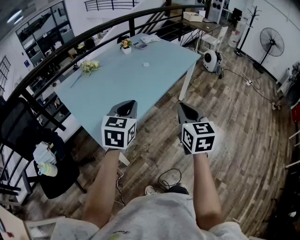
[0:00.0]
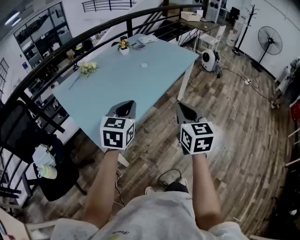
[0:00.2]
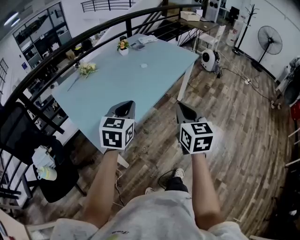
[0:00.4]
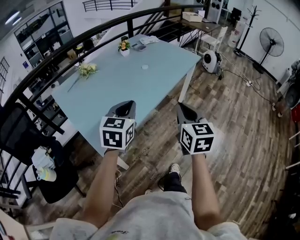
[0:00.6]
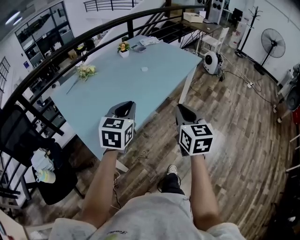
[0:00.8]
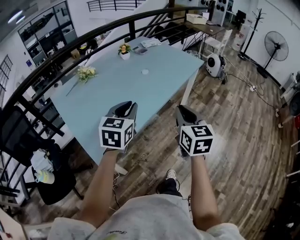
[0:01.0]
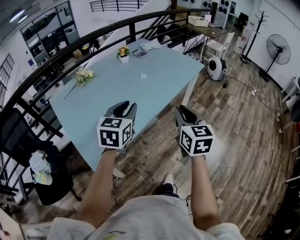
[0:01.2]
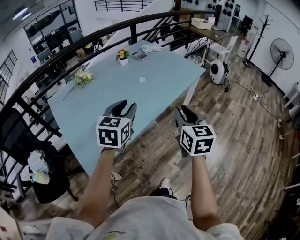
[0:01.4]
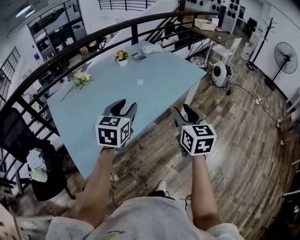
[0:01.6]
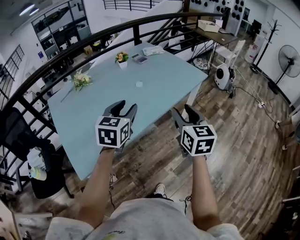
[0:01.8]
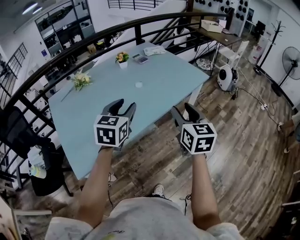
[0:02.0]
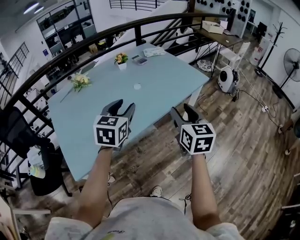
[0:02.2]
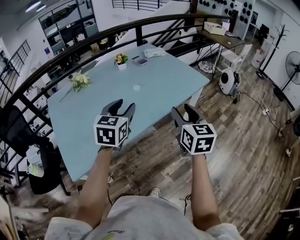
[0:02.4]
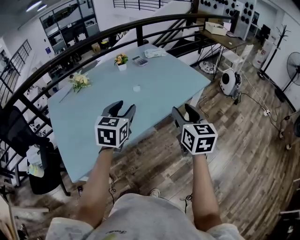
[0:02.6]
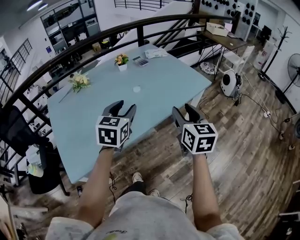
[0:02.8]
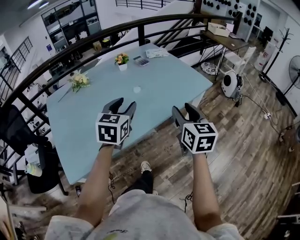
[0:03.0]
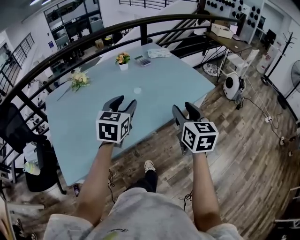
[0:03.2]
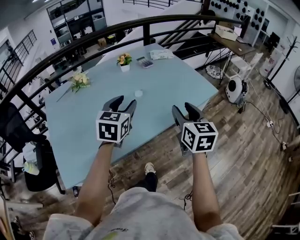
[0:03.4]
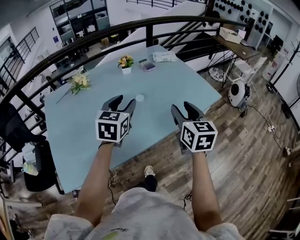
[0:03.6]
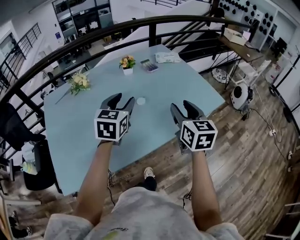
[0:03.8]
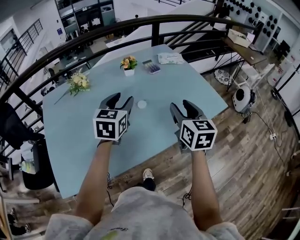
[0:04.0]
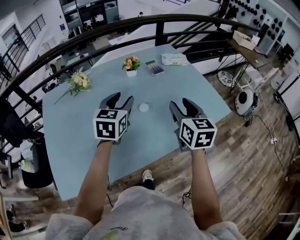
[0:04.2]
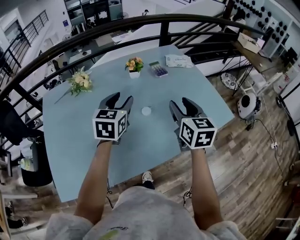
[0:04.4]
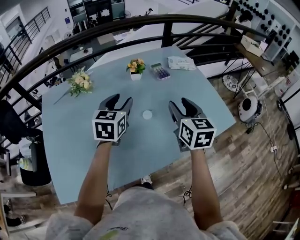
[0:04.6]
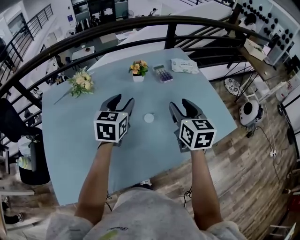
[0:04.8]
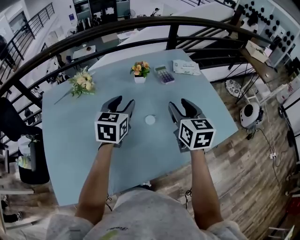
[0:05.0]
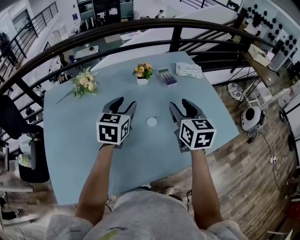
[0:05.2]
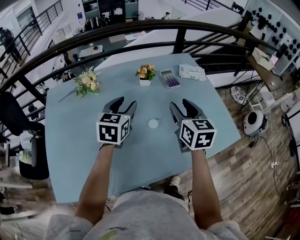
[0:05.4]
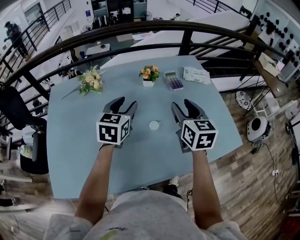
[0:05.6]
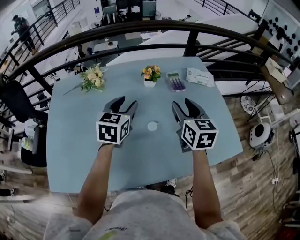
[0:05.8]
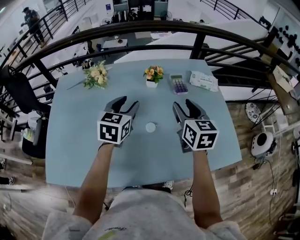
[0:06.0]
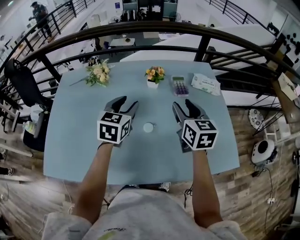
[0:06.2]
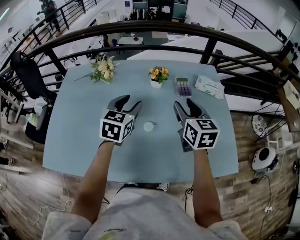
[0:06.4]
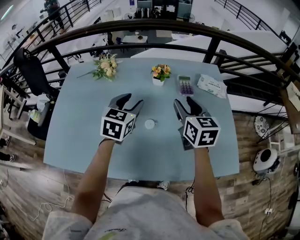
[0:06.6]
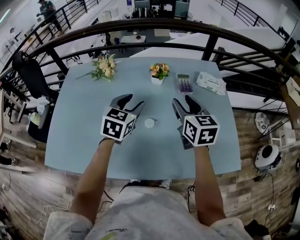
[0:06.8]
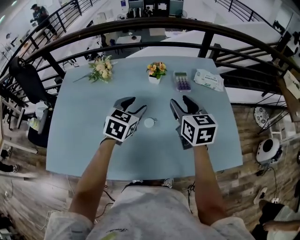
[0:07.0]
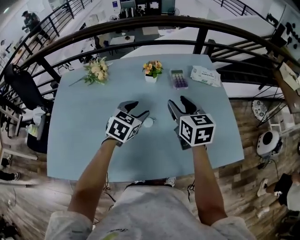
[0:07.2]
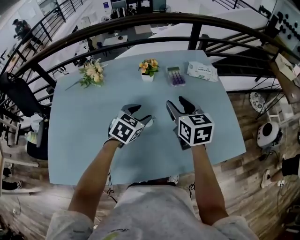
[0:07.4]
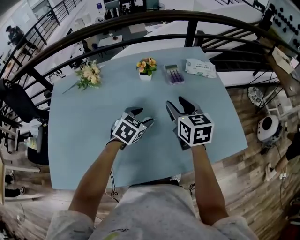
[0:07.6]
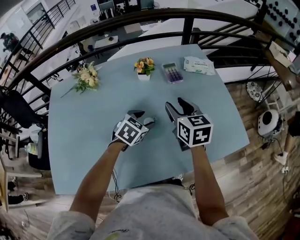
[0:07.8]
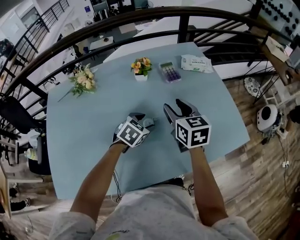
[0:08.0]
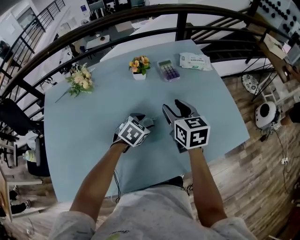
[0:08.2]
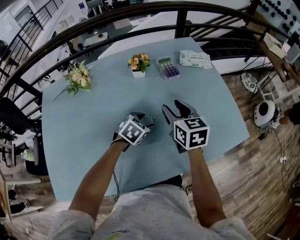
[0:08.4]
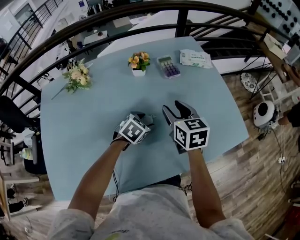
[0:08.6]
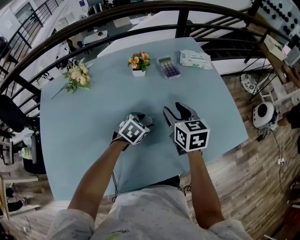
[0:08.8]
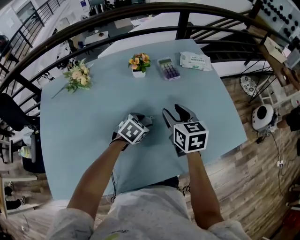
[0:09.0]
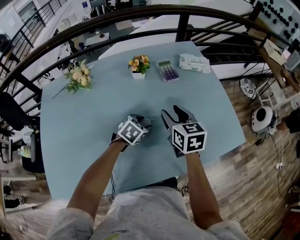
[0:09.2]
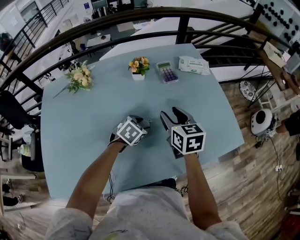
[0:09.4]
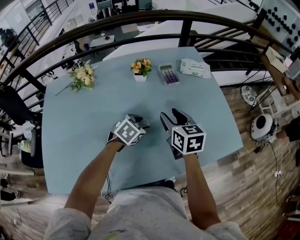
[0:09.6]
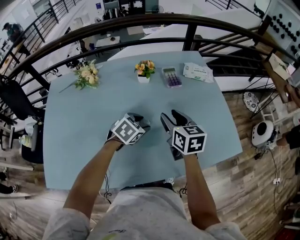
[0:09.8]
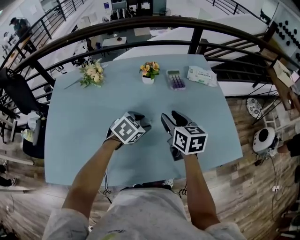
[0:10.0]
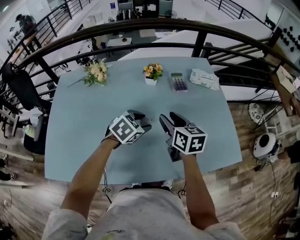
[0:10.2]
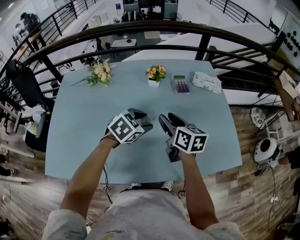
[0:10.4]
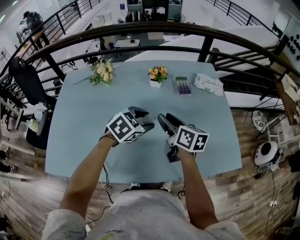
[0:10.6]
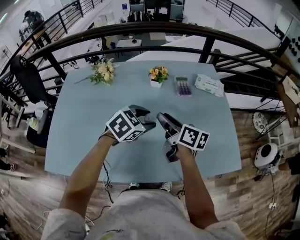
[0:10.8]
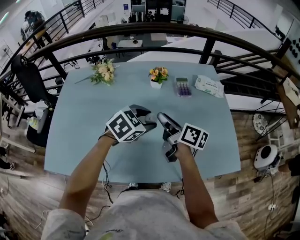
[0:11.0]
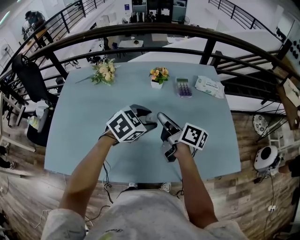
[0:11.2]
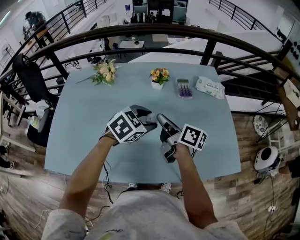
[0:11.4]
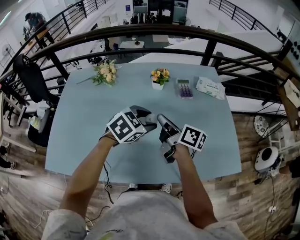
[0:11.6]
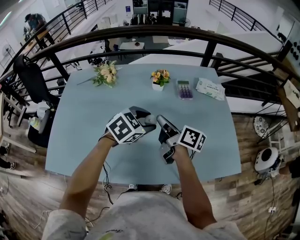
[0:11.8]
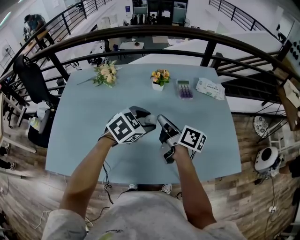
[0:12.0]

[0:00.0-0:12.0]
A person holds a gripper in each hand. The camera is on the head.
0:00.0 to 0:01.6: The right gripper moves forward and to the right, approximately 25 cm, and opens up. Meanwhile the left gripper is displaced forward by about 20 cm, and opens its fingers.
0:01.6 to 0:03.0: Both grippers move forward and to the right, some 10 cm.
0:03.0 to 0:04.4: The two grippers go some 25 cm forward.
0:04.4 to 0:06.0: The right gripper moves forward, roughly 15 cm. The left gripper goes about 5 cm forward.
0:06.0 to 0:07.6: The left gripper moves downward and to the right, approximately 15 cm, and swivels approximately 30 degrees.
0:07.6 to 0:09.0: The left gripper travels downward by about 10 cm; the right gripper travels downward by roughly 5 cm.
0:09.0 to 0:10.4: The left gripper heads upward, covering some 10 cm, while the right gripper changes its angle by roughly 20 degrees.
0:10.4 to 0:12.0: The right gripper swivels some 30 degrees, and closes up.

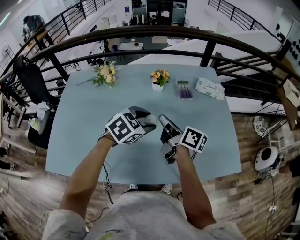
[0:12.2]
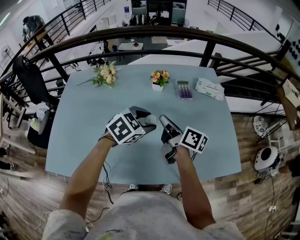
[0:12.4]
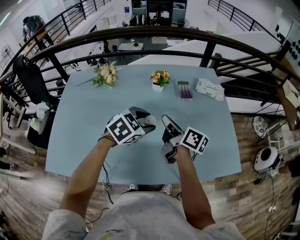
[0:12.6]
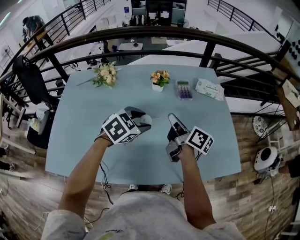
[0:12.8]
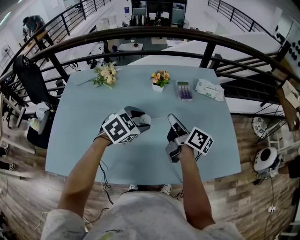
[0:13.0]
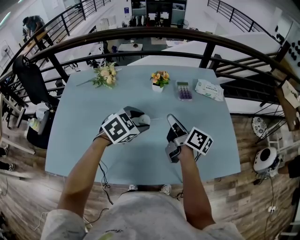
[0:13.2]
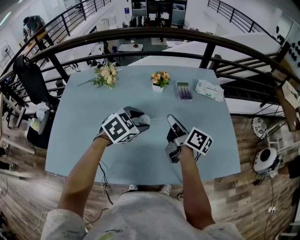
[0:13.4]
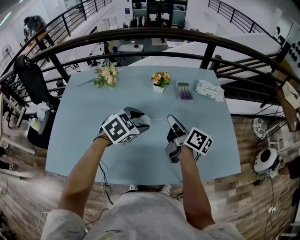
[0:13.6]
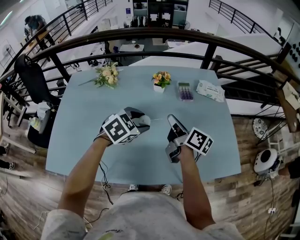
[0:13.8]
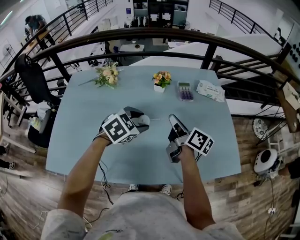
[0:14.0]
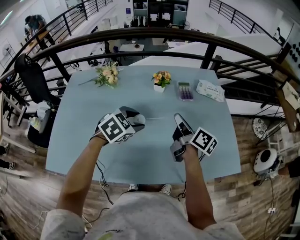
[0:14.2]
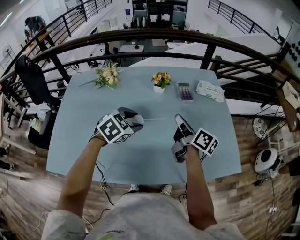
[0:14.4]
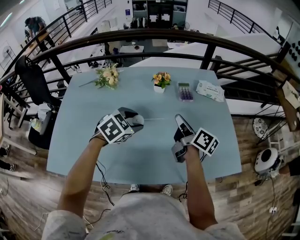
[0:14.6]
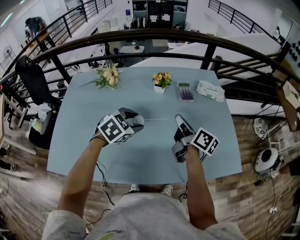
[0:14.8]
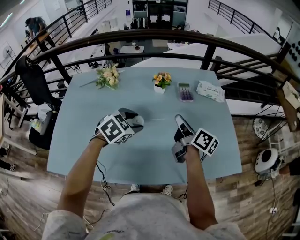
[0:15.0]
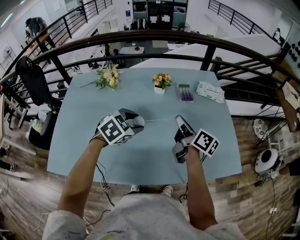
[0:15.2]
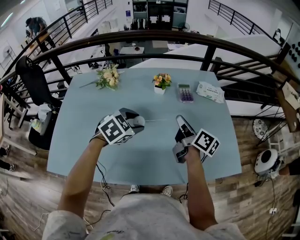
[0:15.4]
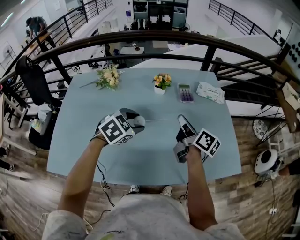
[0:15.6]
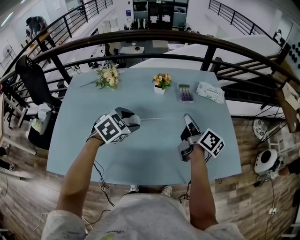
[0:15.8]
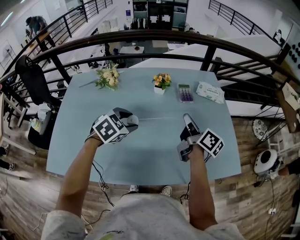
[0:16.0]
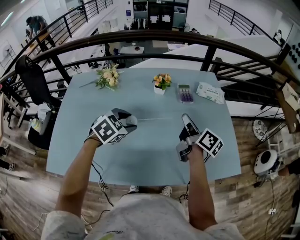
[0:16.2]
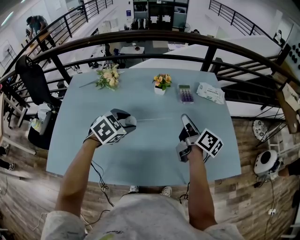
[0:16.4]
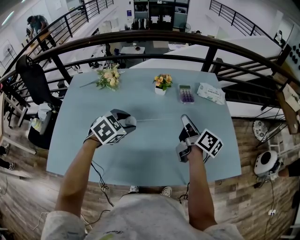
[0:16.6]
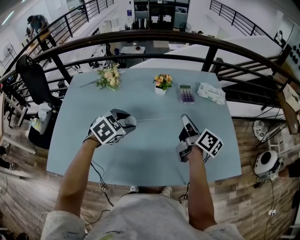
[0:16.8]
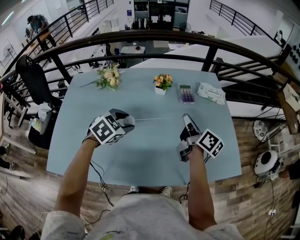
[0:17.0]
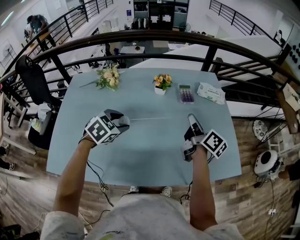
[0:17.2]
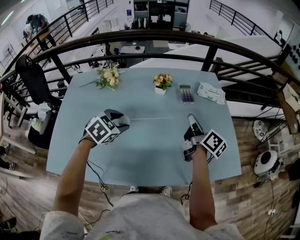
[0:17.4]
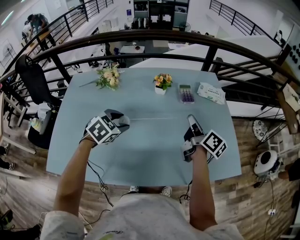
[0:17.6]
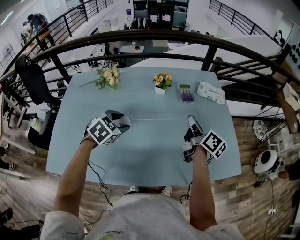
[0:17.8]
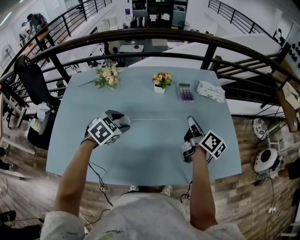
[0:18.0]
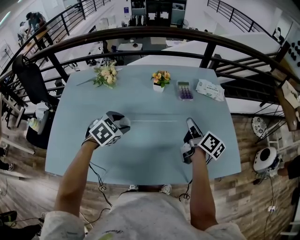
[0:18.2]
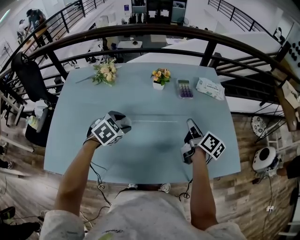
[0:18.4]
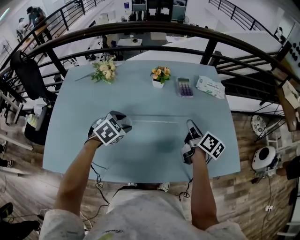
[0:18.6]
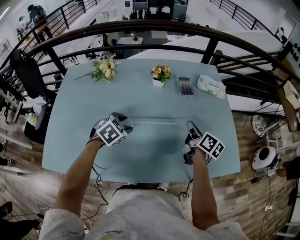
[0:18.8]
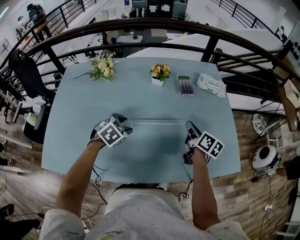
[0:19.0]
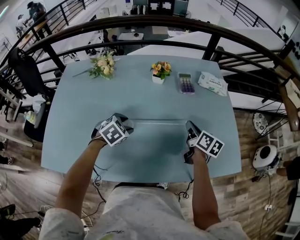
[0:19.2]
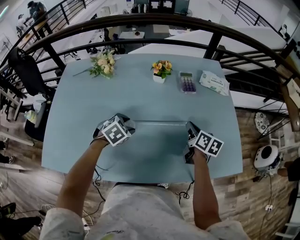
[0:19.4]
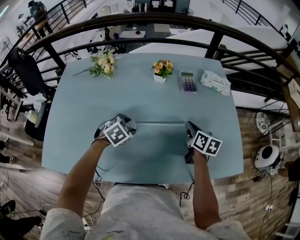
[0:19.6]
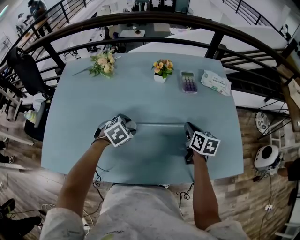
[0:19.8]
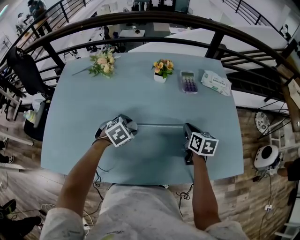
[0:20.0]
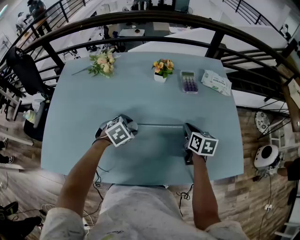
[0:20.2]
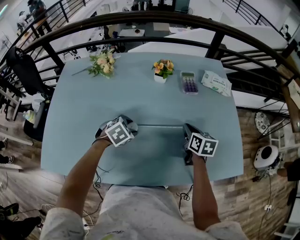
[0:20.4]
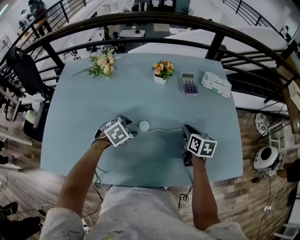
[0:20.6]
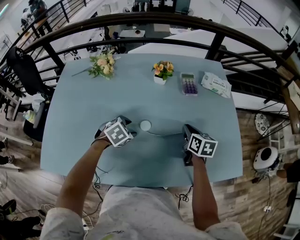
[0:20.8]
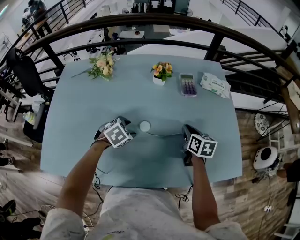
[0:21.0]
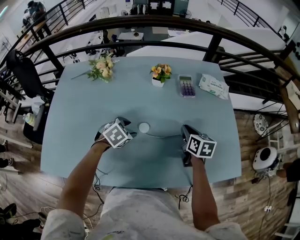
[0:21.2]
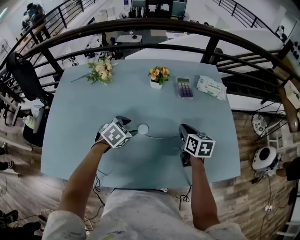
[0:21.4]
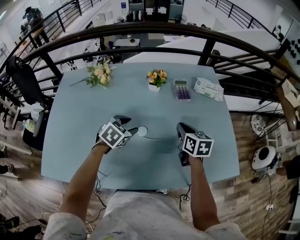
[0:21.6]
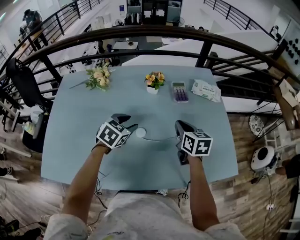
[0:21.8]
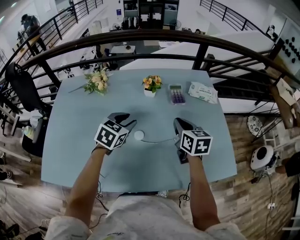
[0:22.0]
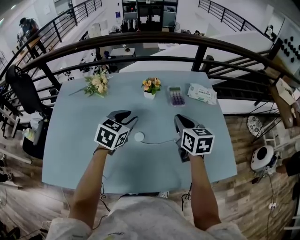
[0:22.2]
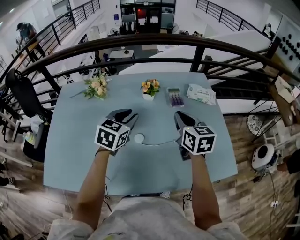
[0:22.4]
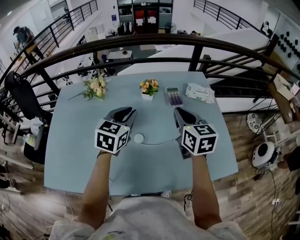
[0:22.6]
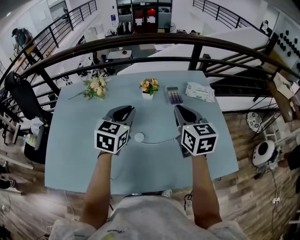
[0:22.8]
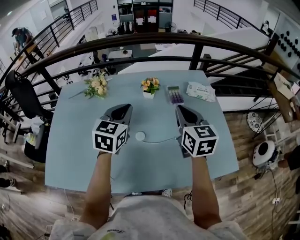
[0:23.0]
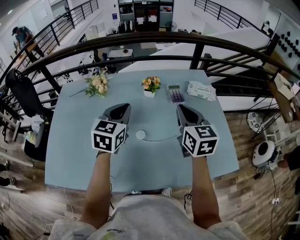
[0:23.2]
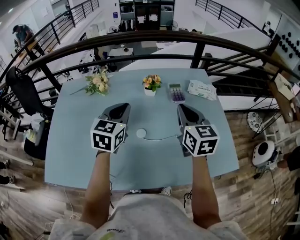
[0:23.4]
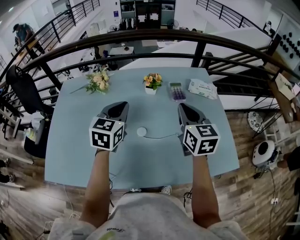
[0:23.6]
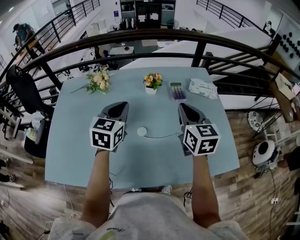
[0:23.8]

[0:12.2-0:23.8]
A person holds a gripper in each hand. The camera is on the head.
0:12.2 to 0:13.6: The grippers stay close to where they were, moving slightly.
0:13.6 to 0:15.0: The grippers make only small movements.
0:15.0 to 0:16.6: The grippers stay close to where they were, moving slightly.
0:16.6 to 0:18.0: The grippers make only small movements.
0:18.0 to 0:19.4: Both grippers move downward, some 10 cm. The right gripper changes its angle by roughly 30 degrees.
0:19.4 to 0:21.0: The grippers make only small movements.
0:21.0 to 0:22.4: Both grippers move upward, roughly 20 cm. The right gripper rotates about 20 degrees. The left gripper tilts its fingers roughly 40 degrees upward, and closes its fingers.
0:22.4 to 0:23.8: The left gripper moves approximately 5 cm, and closes.
